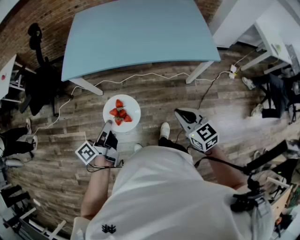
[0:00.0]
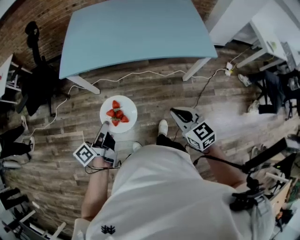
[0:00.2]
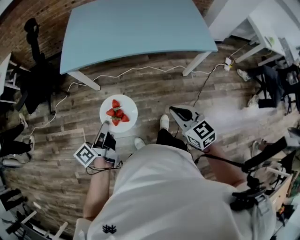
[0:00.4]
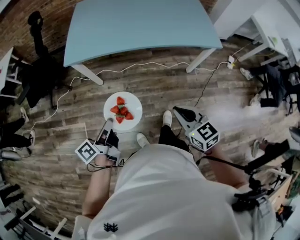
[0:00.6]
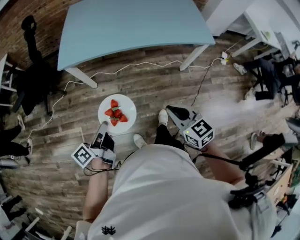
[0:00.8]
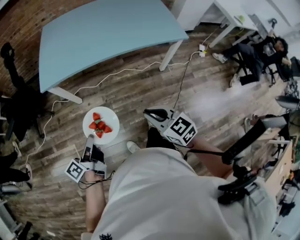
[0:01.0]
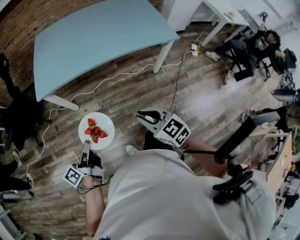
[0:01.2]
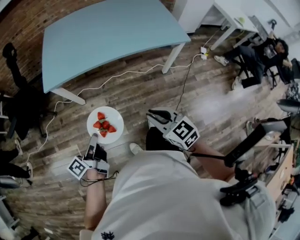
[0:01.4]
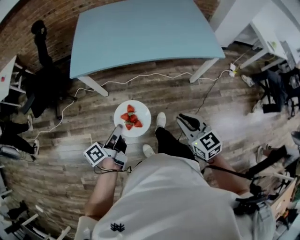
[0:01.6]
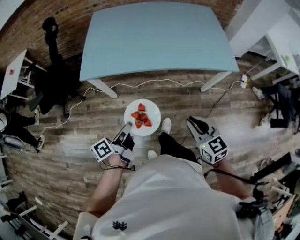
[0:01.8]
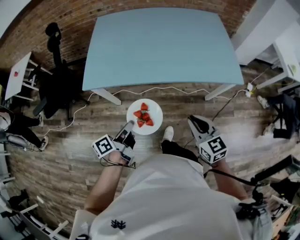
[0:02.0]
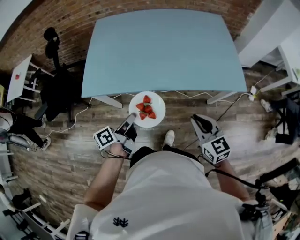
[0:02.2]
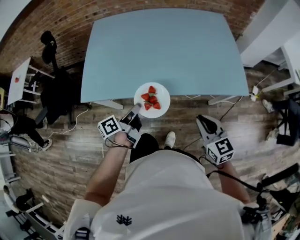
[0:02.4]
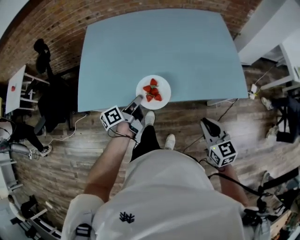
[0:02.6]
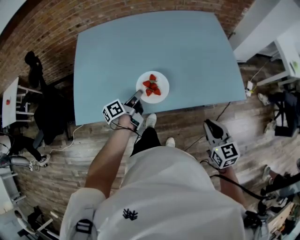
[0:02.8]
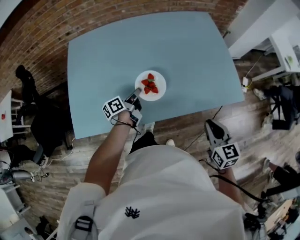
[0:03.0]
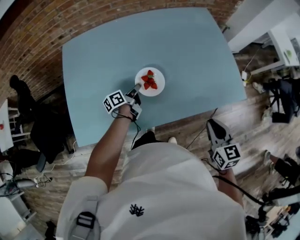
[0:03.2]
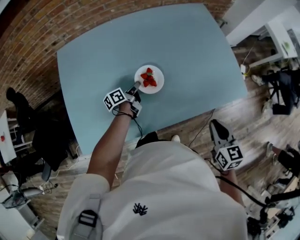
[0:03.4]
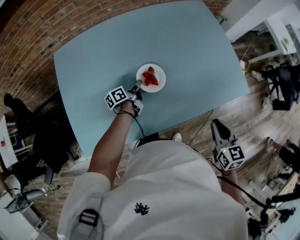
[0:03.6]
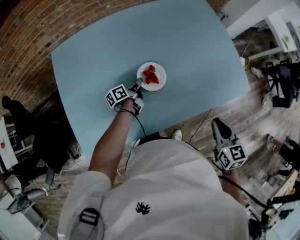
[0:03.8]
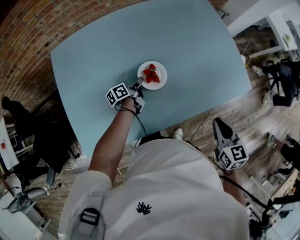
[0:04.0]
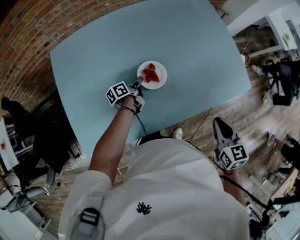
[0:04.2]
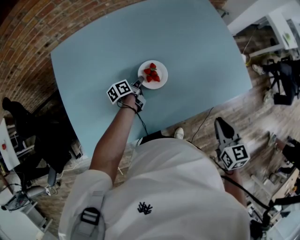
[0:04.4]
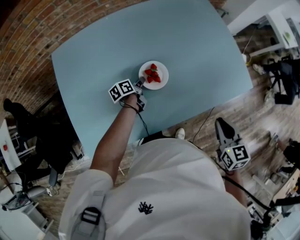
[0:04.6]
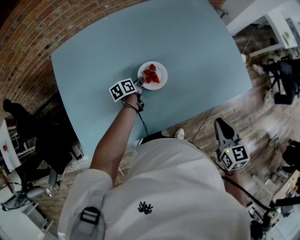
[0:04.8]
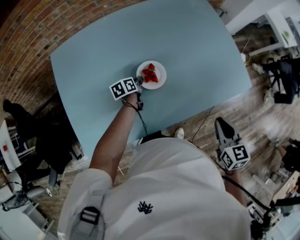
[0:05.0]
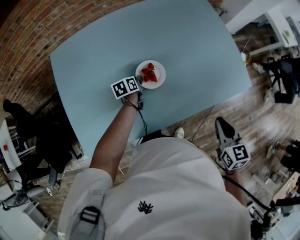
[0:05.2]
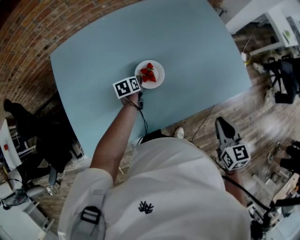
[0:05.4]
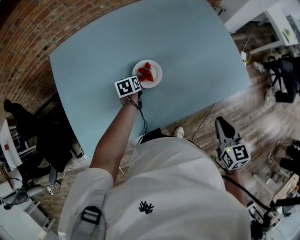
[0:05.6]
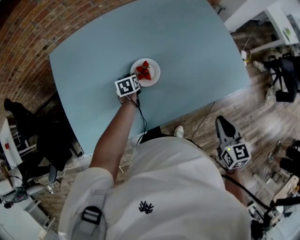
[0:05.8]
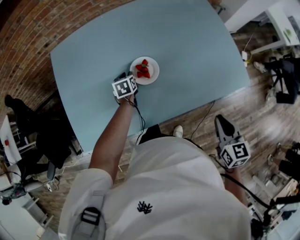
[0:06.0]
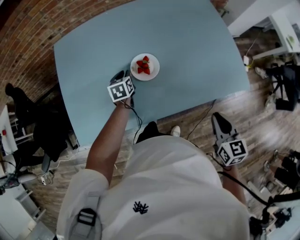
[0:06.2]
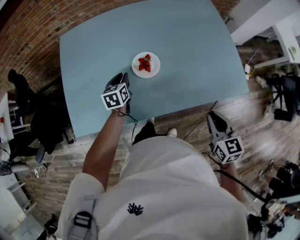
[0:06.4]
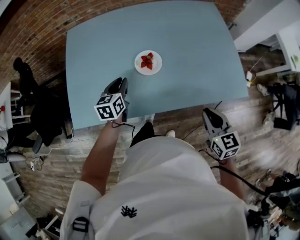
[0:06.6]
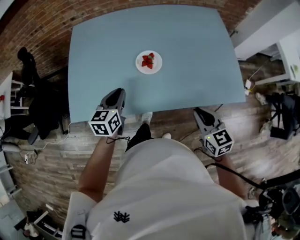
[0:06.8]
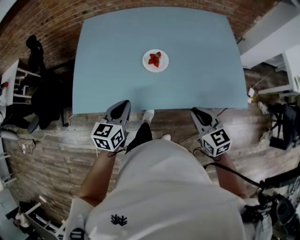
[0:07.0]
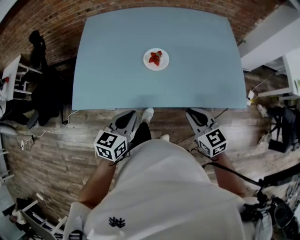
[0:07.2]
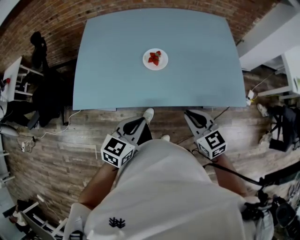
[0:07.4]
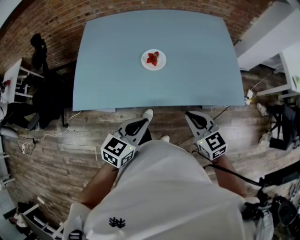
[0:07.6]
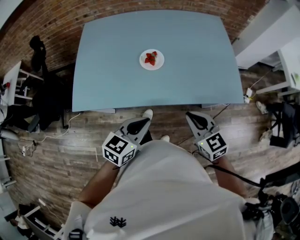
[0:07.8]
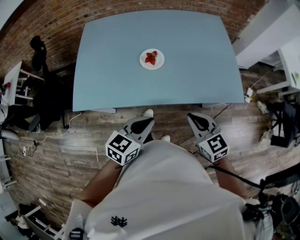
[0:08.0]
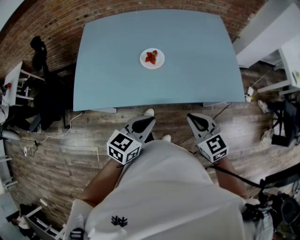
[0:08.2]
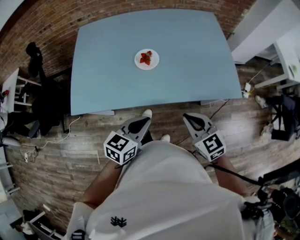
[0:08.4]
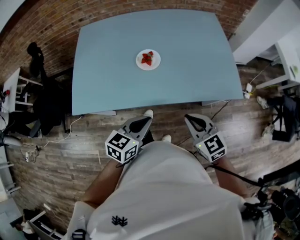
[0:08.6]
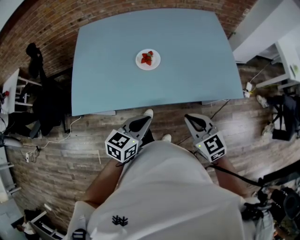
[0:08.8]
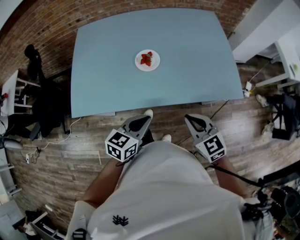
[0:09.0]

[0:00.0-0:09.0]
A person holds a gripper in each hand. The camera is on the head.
0:00.0 to 0:01.6: The left gripper travels to the left by some 5 cm. Meanwhile the right gripper shifts approximately 10 cm to the left.
0:01.6 to 0:03.0: The left gripper heads forward, covering approximately 60 cm. The right gripper goes approximately 35 cm forward, and turns by roughly 20 degrees.
0:03.0 to 0:04.4: The left gripper shifts about 15 cm forward and downward. Meanwhile the right gripper ends up about 5 cm from where it was.
0:04.4 to 0:06.0: The left gripper rotates some 50 degrees.
0:06.0 to 0:07.6: The right gripper travels to the left by roughly 10 cm, and turns by some 40 degrees. Meanwhile the left gripper moves backward and upward, roughly 50 cm, changes its angle by approximately 30 degrees, and closes.
0:07.6 to 0:09.0: The grippers make only small movements.

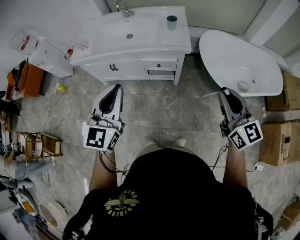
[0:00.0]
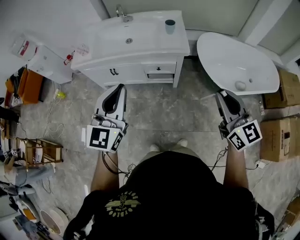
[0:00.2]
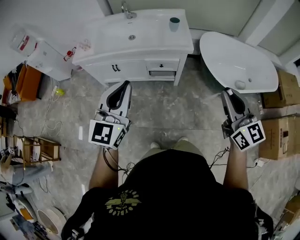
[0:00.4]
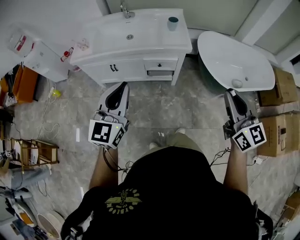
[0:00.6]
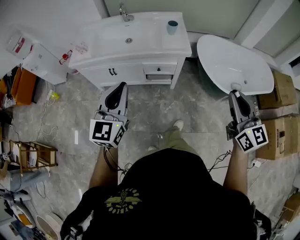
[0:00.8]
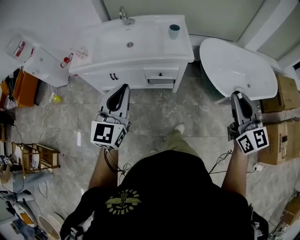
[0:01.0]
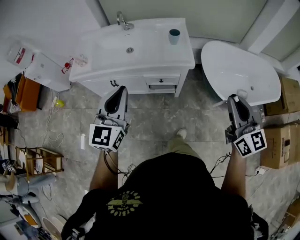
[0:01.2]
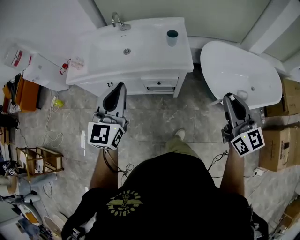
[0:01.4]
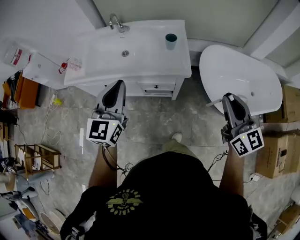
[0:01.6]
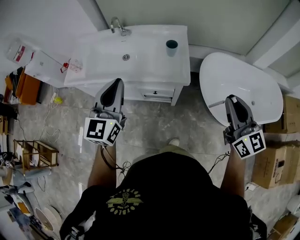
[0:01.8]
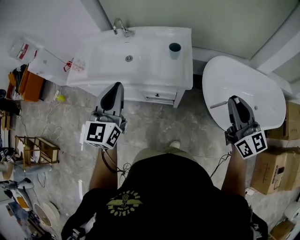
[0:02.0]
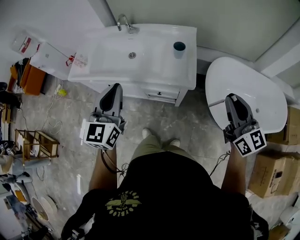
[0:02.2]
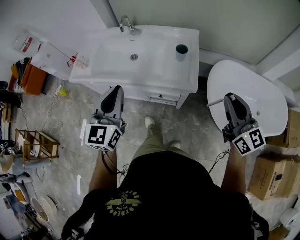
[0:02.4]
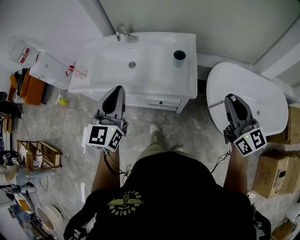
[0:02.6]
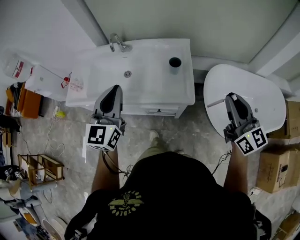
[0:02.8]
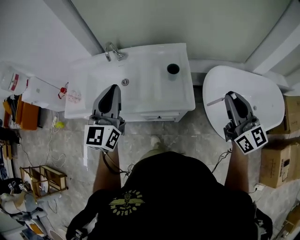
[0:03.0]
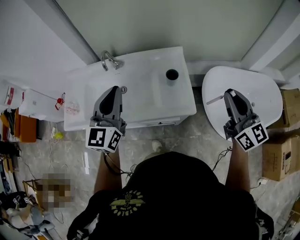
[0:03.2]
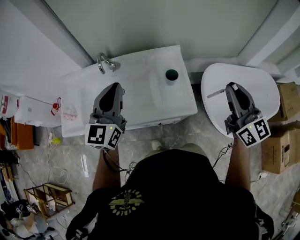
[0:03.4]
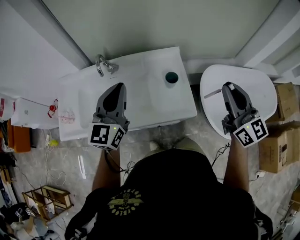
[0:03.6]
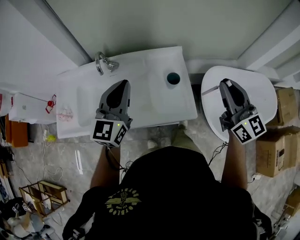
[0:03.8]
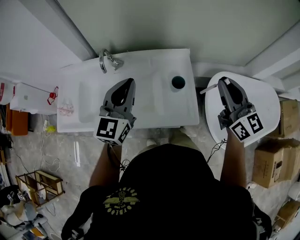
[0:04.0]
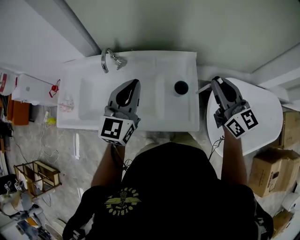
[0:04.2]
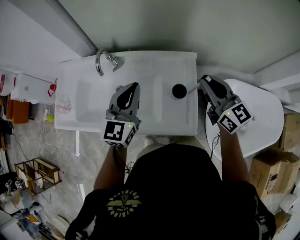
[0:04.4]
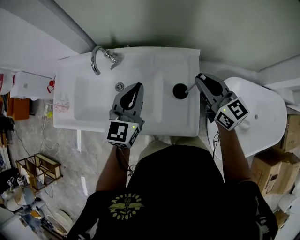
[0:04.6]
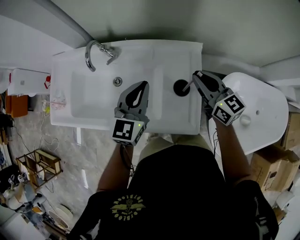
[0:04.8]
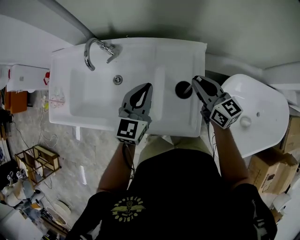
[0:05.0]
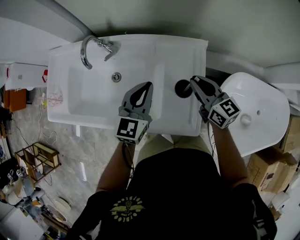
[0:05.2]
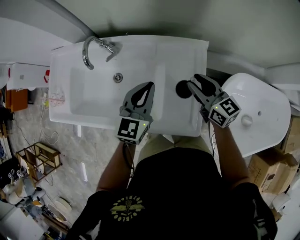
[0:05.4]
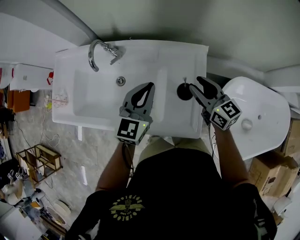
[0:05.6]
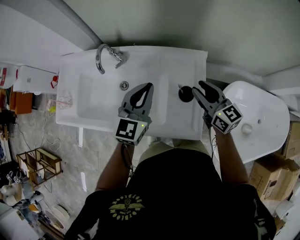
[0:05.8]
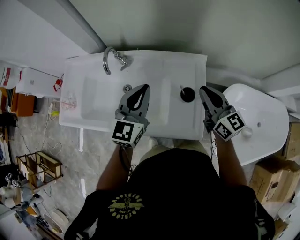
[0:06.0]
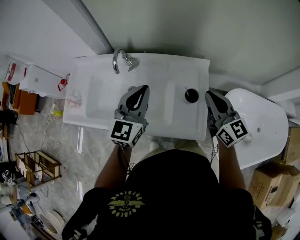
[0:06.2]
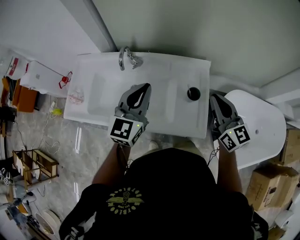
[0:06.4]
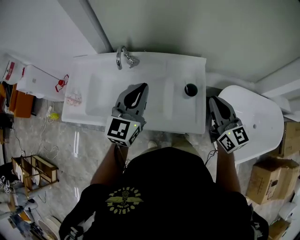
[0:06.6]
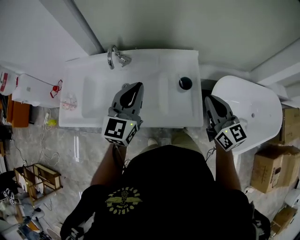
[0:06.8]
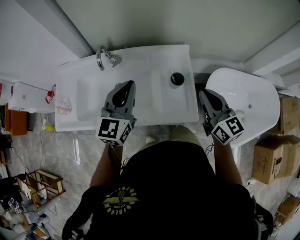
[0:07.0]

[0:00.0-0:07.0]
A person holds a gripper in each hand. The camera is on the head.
0:00.0 to 0:01.4: The two grippers go approximately 15 cm forward.
0:01.4 to 0:02.8: Both grippers move forward, some 20 cm.
0:02.8 to 0:04.2: Both grippers travel together forward, some 25 cm.
0:04.2 to 0:05.6: The right gripper travels downward and forward by about 20 cm, rotates about 20 degrees, and opens its fingers; the left gripper heads downward, to the right and forward, covering approximately 15 cm.
0:05.6 to 0:07.0: The left gripper shifts some 15 cm upward, backward and to the left, while the right gripper heads backward and upward, covering approximately 20 cm, rotates some 20 degrees, and closes.

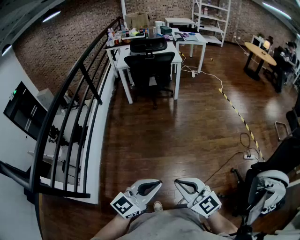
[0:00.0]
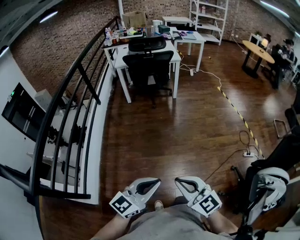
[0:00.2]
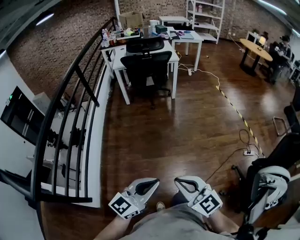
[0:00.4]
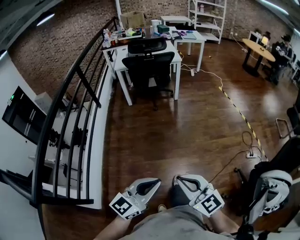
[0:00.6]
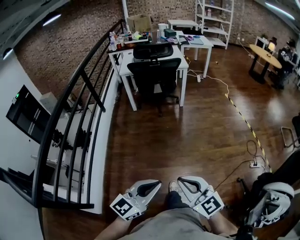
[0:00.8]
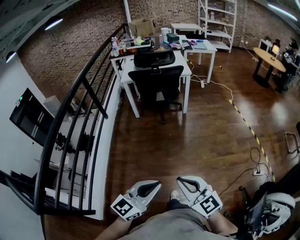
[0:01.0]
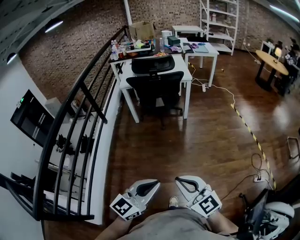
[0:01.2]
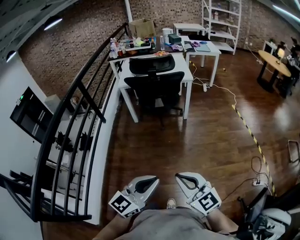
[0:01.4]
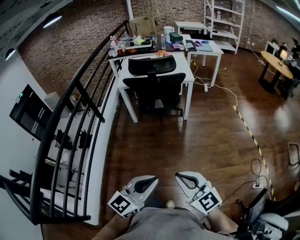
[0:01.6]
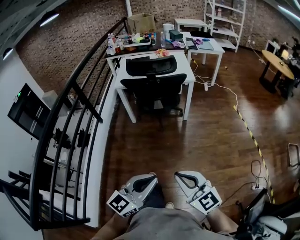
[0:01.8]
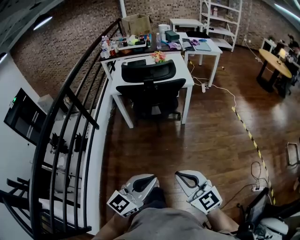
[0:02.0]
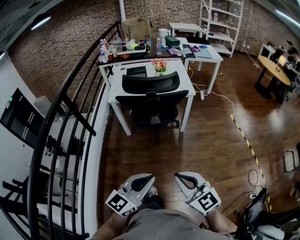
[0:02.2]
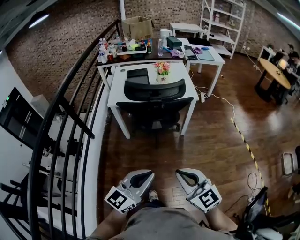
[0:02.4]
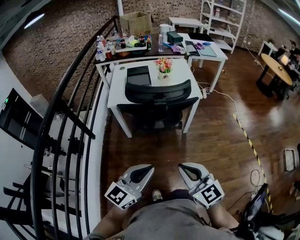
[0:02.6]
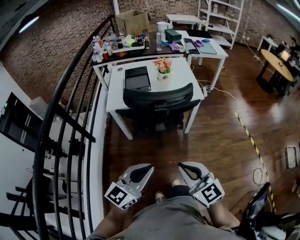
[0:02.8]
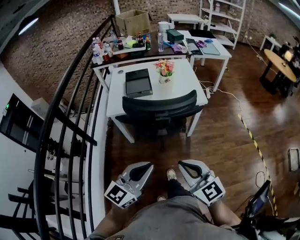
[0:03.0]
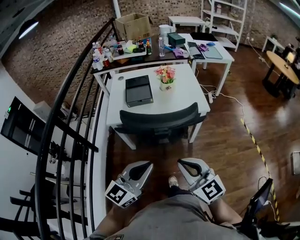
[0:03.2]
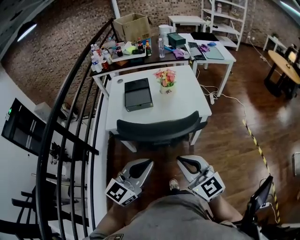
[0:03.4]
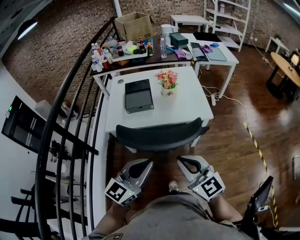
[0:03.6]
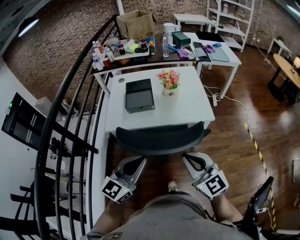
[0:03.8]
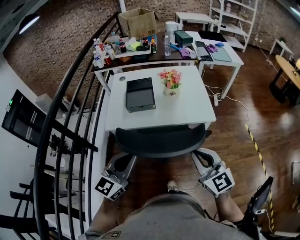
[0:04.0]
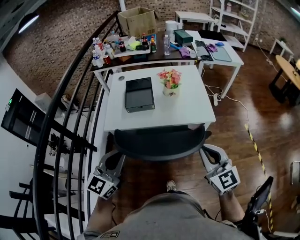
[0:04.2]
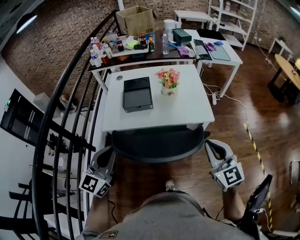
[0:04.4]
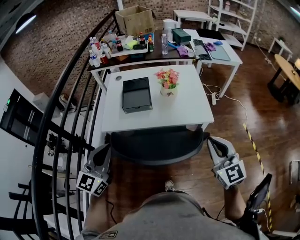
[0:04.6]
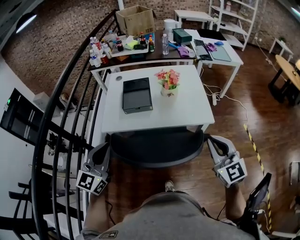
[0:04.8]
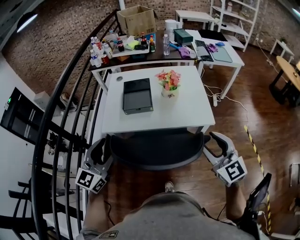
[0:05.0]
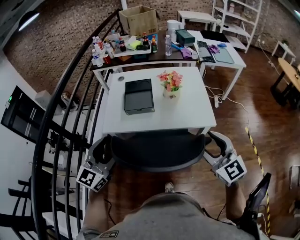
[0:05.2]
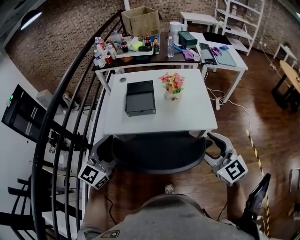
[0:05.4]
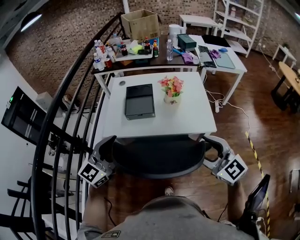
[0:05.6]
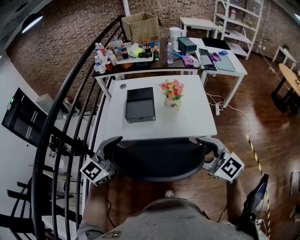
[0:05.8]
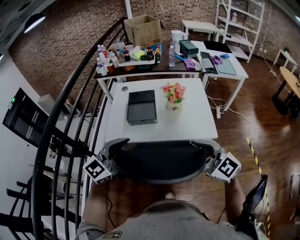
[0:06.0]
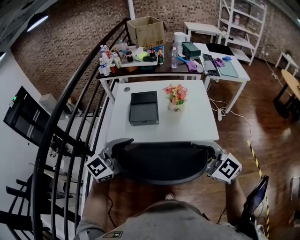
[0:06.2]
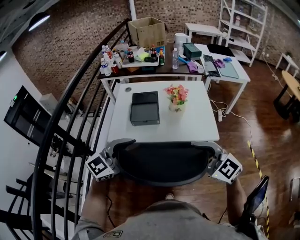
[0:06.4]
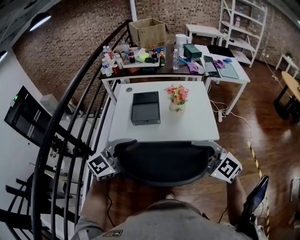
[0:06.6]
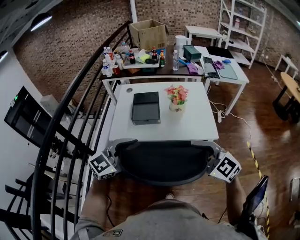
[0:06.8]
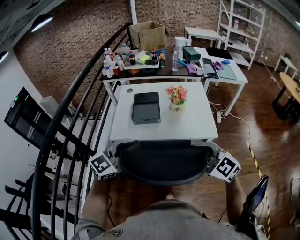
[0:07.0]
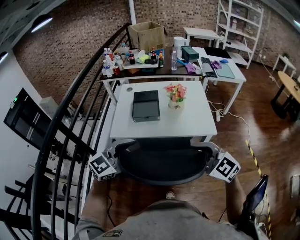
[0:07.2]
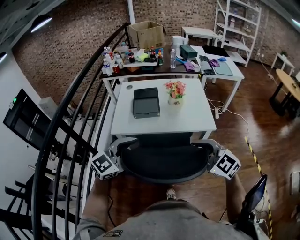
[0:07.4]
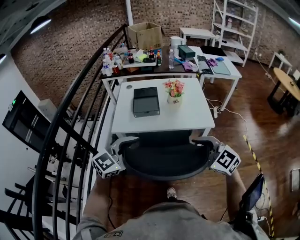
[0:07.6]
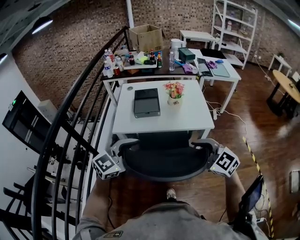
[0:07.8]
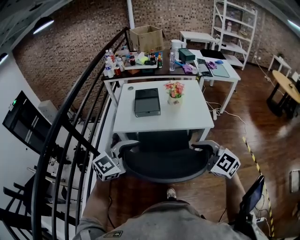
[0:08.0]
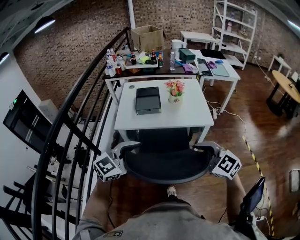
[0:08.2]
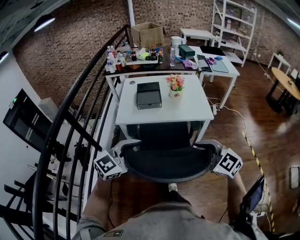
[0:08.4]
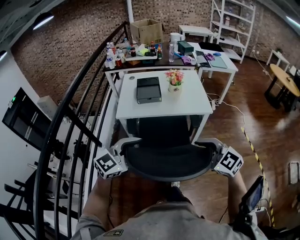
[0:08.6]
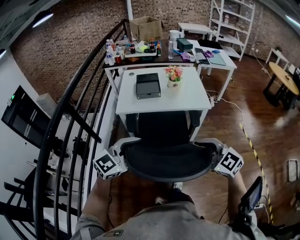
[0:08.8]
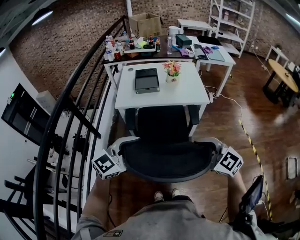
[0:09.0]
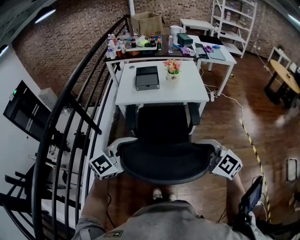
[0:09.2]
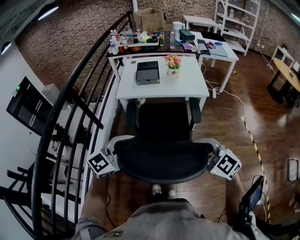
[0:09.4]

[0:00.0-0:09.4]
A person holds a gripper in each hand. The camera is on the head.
0:00.0 to 0:01.6: The two grippers go some 35 cm forward.
0:01.6 to 0:03.2: Both grippers are carried forward, some 50 cm.
0:03.2 to 0:04.8: The right gripper shifts some 25 cm forward and to the right. Meanwhile the left gripper moves forward and to the left, about 20 cm, and swivels roughly 20 degrees.
0:04.8 to 0:06.2: The right gripper shifts about 10 cm to the left, turns by about 30 degrees, and opens up; the left gripper travels to the right by some 10 cm, turns by roughly 30 degrees, and opens up.
0:06.2 to 0:07.8: Both grippers travel together backward, some 10 cm.
0:07.8 to 0:09.4: Both grippers move backward, roughly 25 cm.
